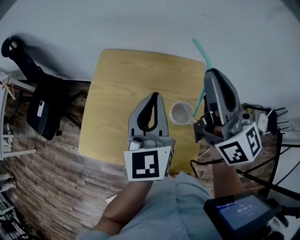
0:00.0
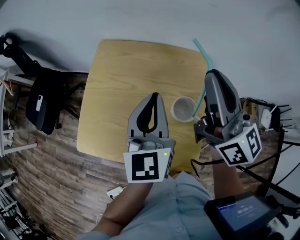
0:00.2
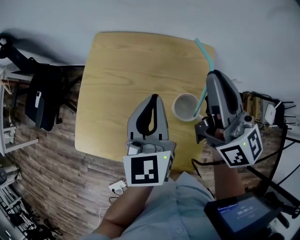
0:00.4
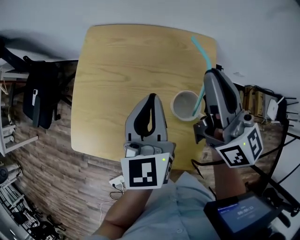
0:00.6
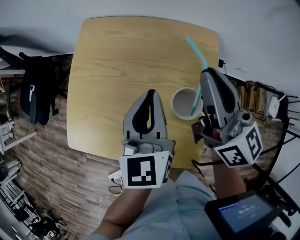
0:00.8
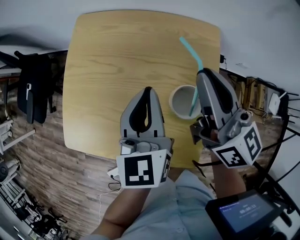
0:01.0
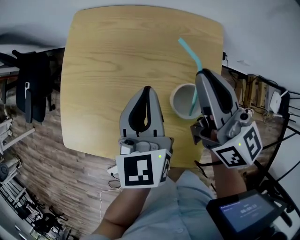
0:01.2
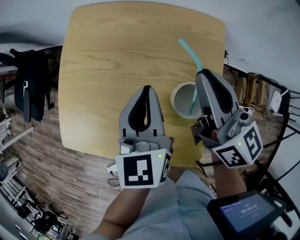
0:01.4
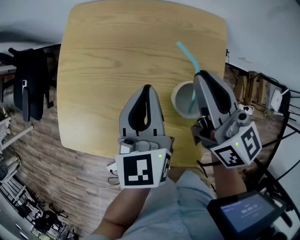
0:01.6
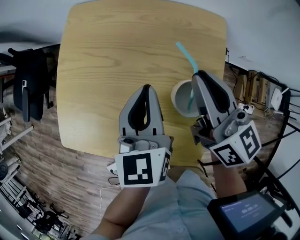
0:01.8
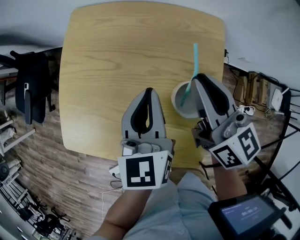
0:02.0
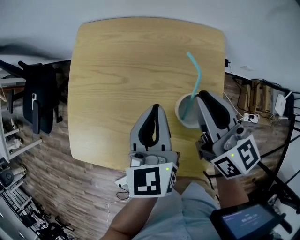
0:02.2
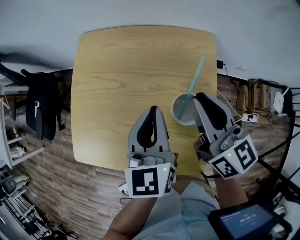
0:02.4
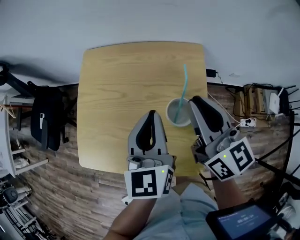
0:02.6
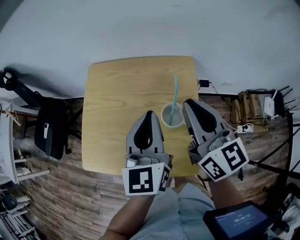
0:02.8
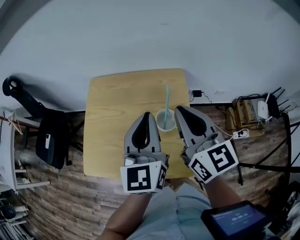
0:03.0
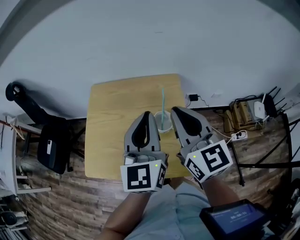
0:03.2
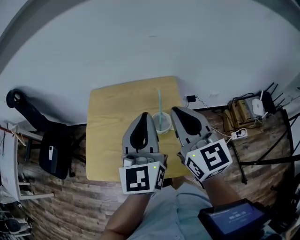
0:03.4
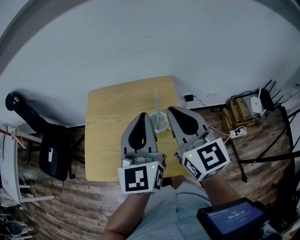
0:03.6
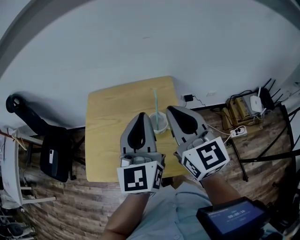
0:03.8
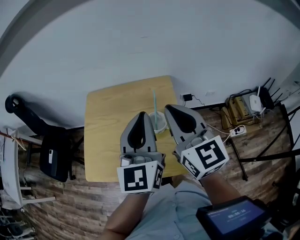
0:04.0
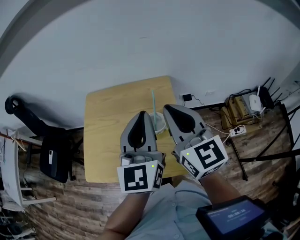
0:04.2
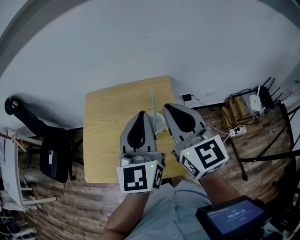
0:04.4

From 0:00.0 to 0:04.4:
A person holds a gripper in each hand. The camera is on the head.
From 0:00.0 to 0:01.4: Both grippers move downward, approximately 20 cm. The right gripper changes its angle by some 20 degrees.
From 0:01.4 to 0:03.0: The grippers both shift upward and backward by roughly 20 cm. The right gripper swivels some 20 degrees. Meanwhile the left gripper changes its angle by about 20 degrees.
From 0:03.0 to 0:04.4: The right gripper changes place by roughly 5 cm. Meanwhile the left gripper travels upward by some 5 cm.

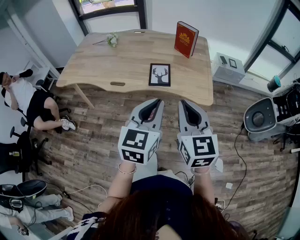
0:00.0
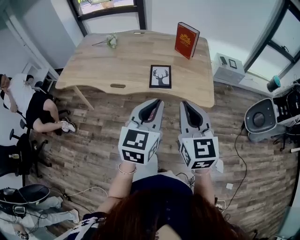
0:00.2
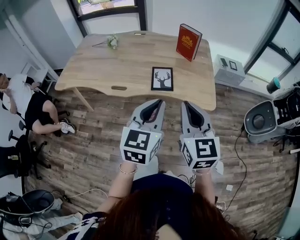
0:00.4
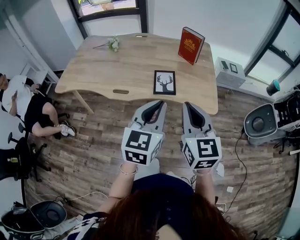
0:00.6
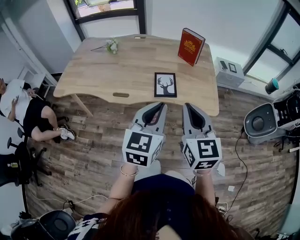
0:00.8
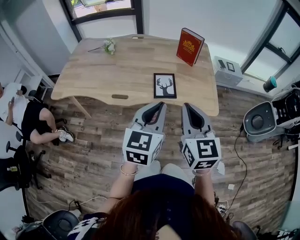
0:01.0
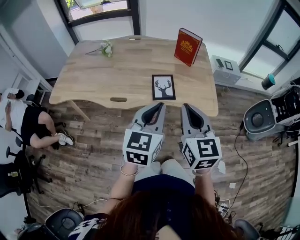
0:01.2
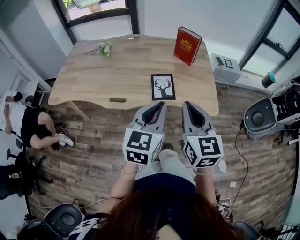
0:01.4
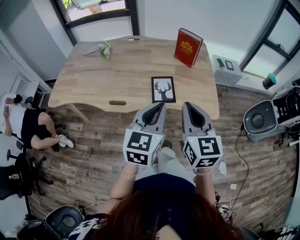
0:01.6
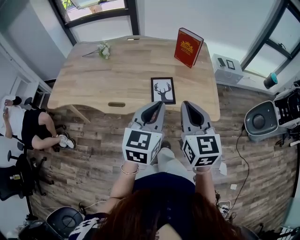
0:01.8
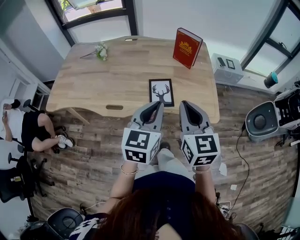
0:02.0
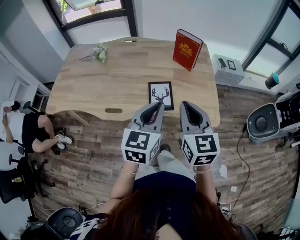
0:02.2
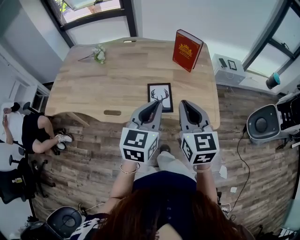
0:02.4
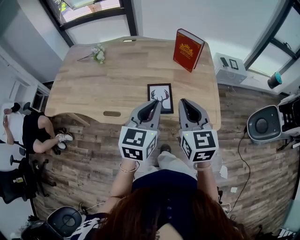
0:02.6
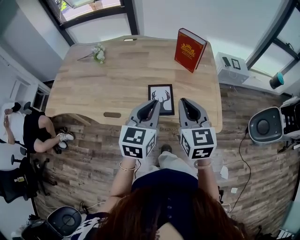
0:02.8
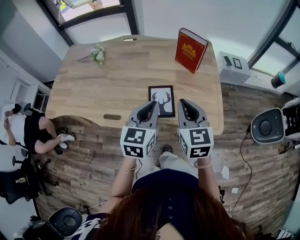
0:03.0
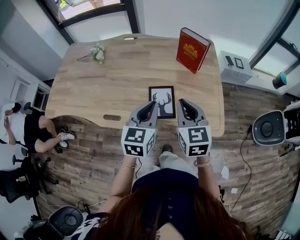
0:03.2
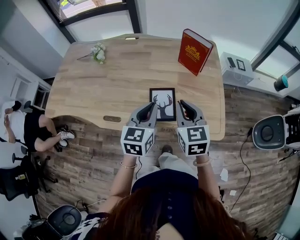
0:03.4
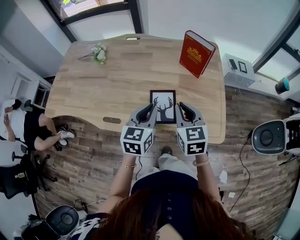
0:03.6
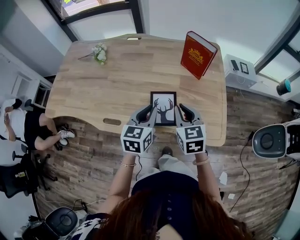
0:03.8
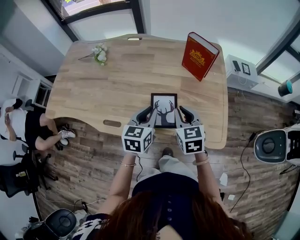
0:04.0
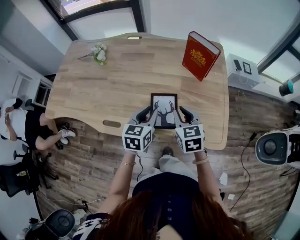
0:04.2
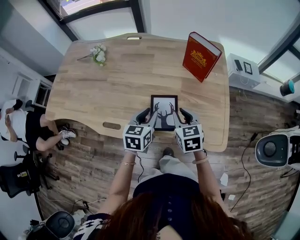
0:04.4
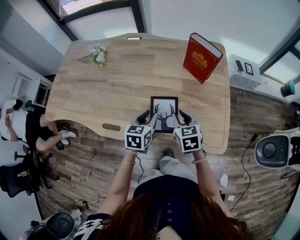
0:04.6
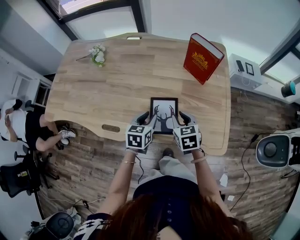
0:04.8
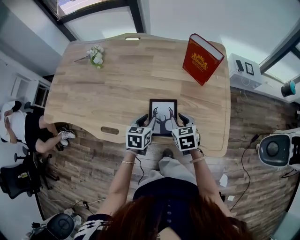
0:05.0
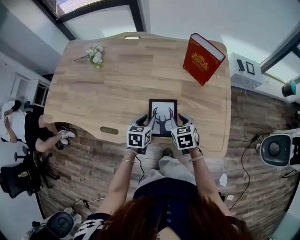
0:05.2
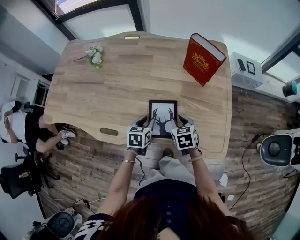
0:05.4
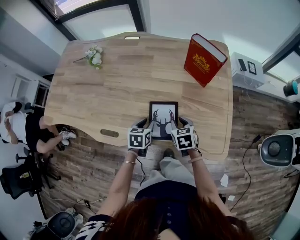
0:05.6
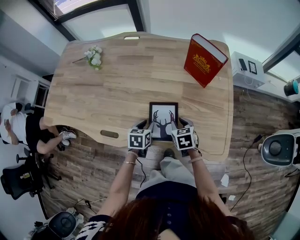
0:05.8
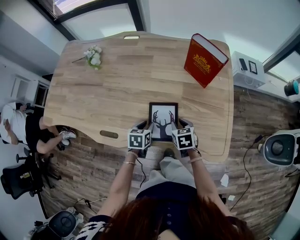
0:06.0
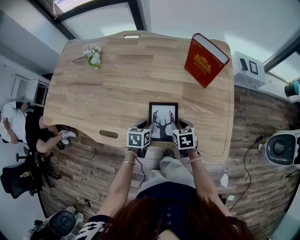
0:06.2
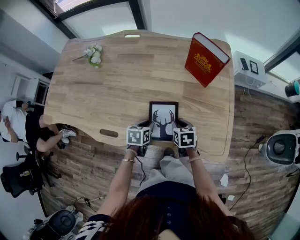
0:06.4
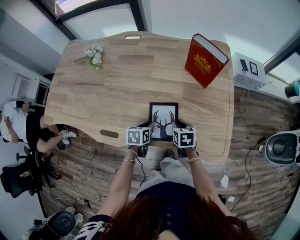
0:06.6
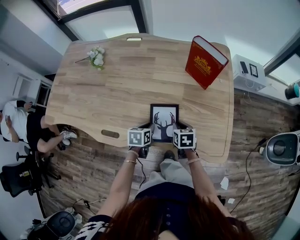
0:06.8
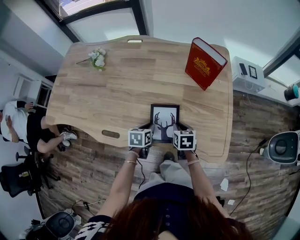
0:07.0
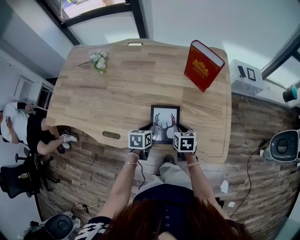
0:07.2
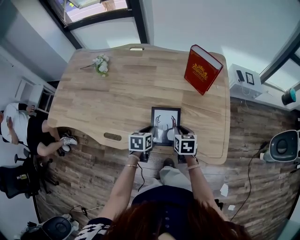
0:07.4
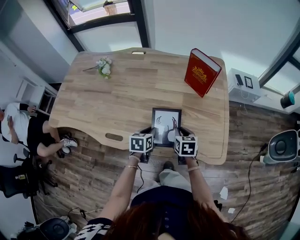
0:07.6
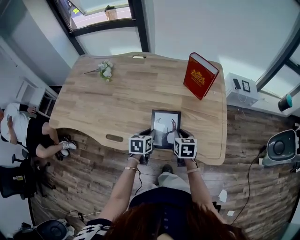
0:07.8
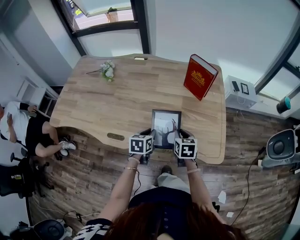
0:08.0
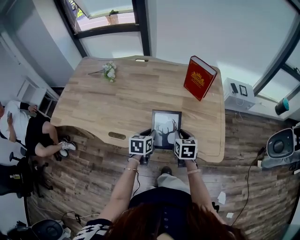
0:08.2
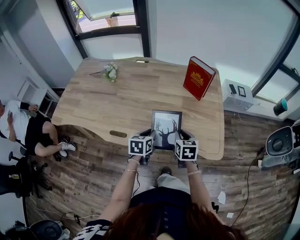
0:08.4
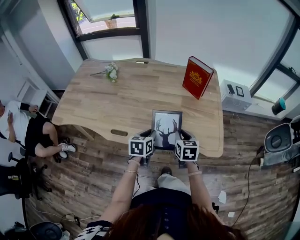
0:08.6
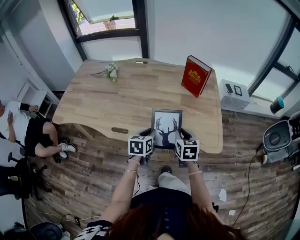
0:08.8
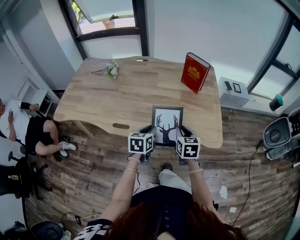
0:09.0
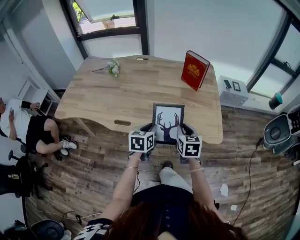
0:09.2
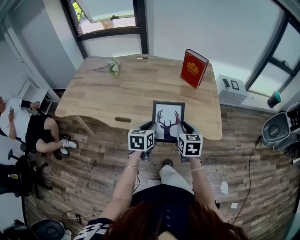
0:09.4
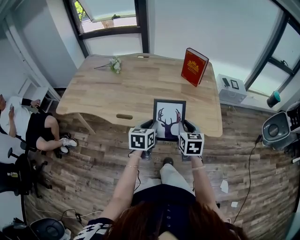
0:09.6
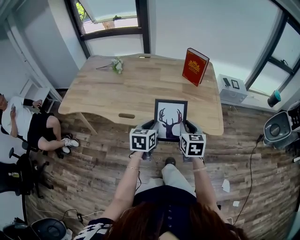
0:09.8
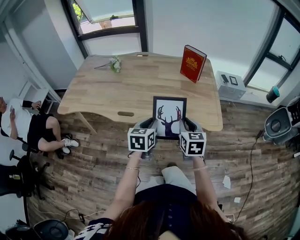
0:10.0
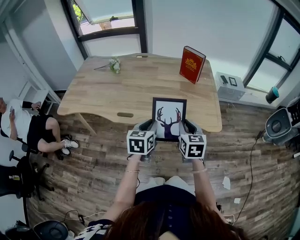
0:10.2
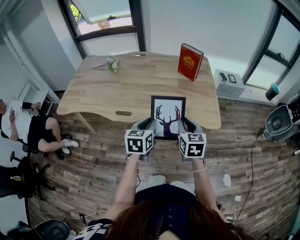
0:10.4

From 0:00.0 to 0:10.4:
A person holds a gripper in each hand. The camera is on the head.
From 0:00.0 to 0:01.4: The grippers both shift forward and to the left by about 10 cm.
From 0:01.4 to 0:03.0: Both grippers move forward and downward, approximately 20 cm.
From 0:03.0 to 0:04.4: Both grippers move downward and forward, approximately 15 cm. The right gripper swivels roughly 20 degrees.
From 0:04.4 to 0:06.0: Both grippers travel together downward, approximately 15 cm. The left gripper turns by approximately 20 degrees.
From 0:06.0 to 0:07.4: There are only small adjustments of the grippers.
From 0:07.4 to 0:09.0: The left gripper moves upward and backward, some 15 cm. The right gripper heads backward and upward, covering about 15 cm.
From 0:09.0 to 0:10.4: The two grippers go approximately 15 cm backward and upward.

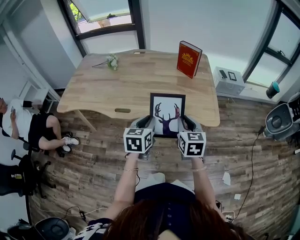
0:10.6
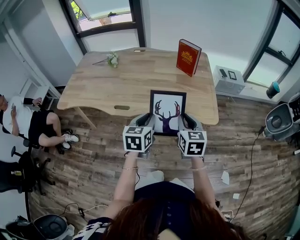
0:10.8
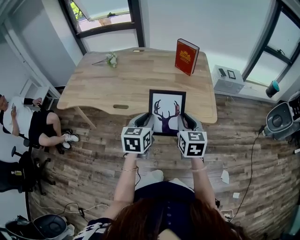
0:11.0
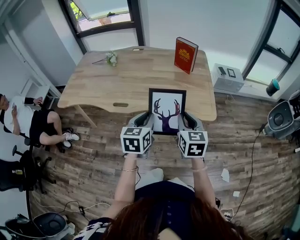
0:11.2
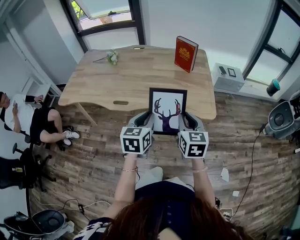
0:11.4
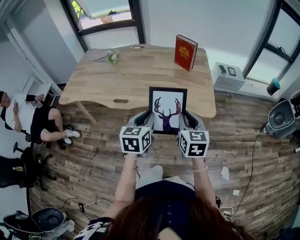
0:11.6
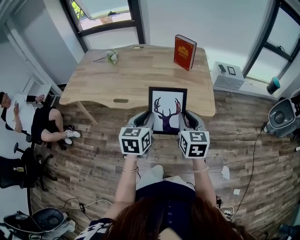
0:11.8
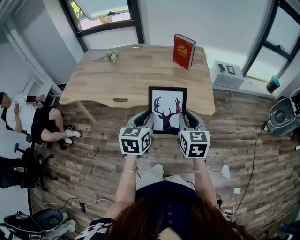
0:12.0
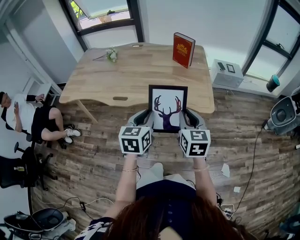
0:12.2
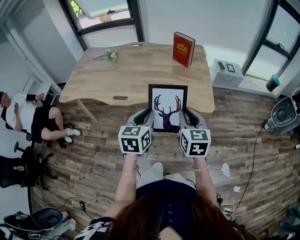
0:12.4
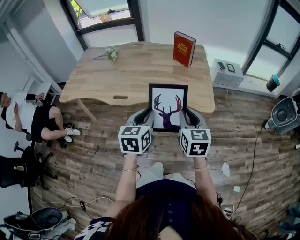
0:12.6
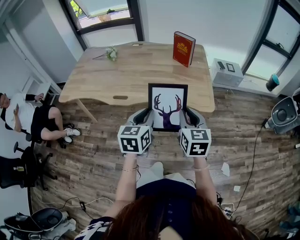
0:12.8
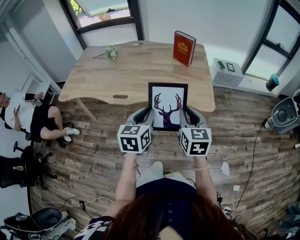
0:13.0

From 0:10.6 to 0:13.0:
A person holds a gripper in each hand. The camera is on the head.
From 0:10.6 to 0:11.8: Both grippers move backward, about 5 cm.
From 0:11.8 to 0:13.0: The grippers move only a little.

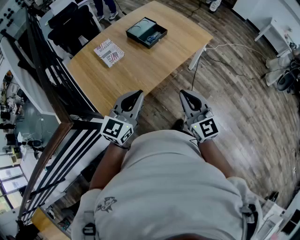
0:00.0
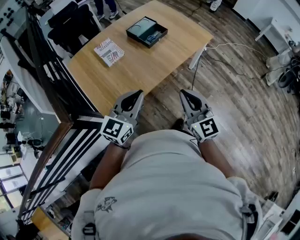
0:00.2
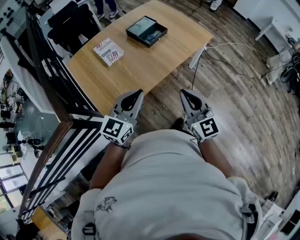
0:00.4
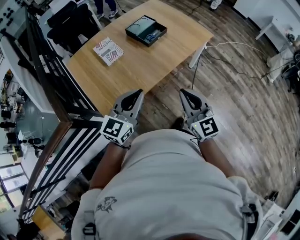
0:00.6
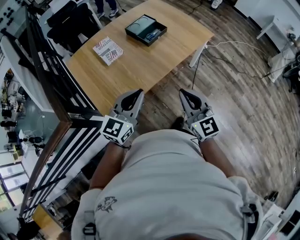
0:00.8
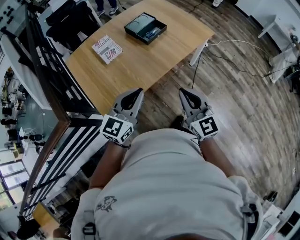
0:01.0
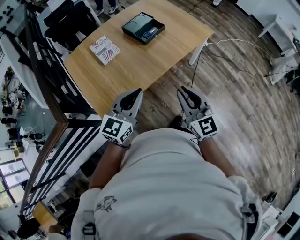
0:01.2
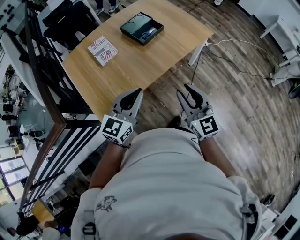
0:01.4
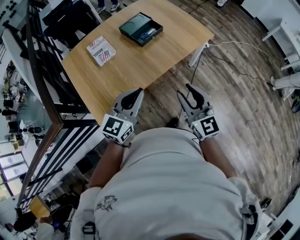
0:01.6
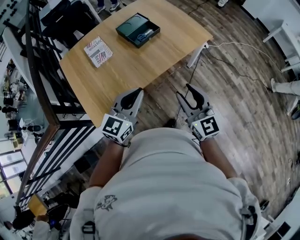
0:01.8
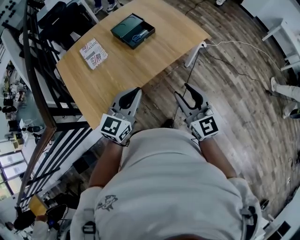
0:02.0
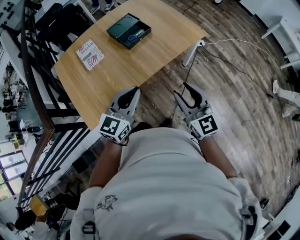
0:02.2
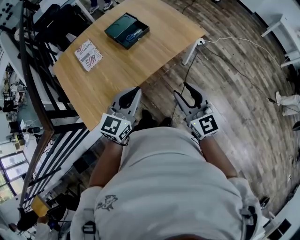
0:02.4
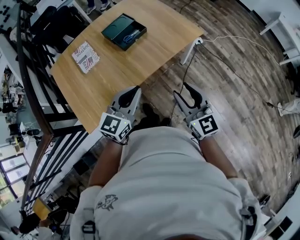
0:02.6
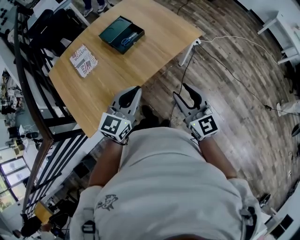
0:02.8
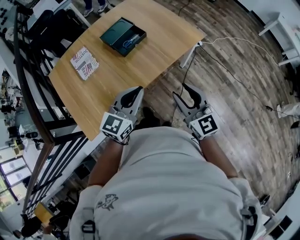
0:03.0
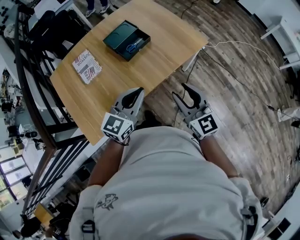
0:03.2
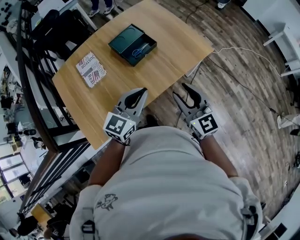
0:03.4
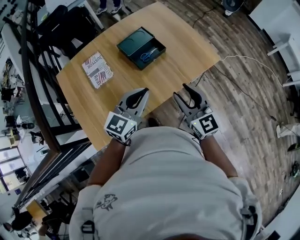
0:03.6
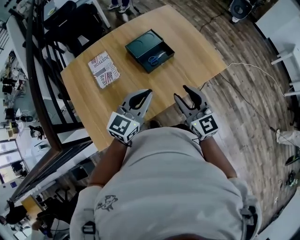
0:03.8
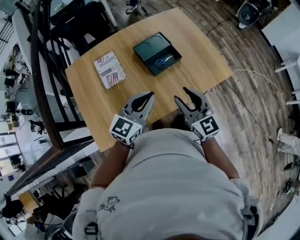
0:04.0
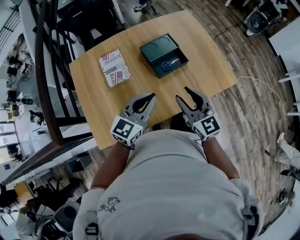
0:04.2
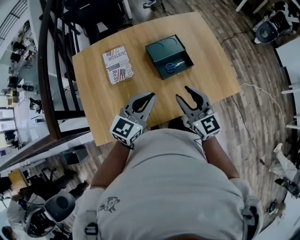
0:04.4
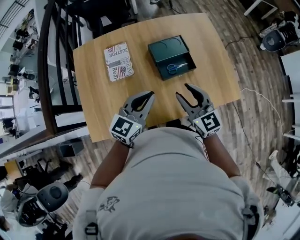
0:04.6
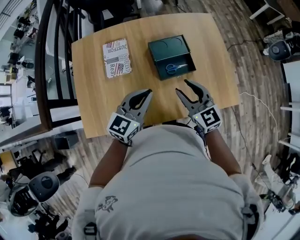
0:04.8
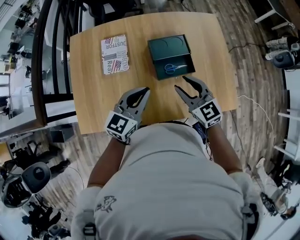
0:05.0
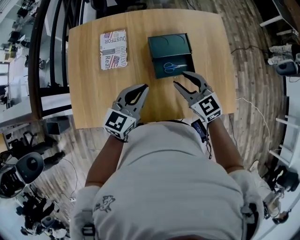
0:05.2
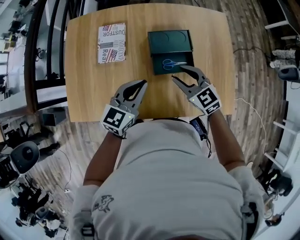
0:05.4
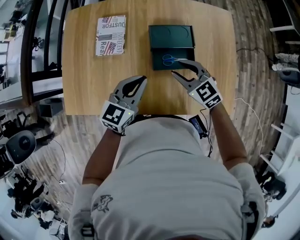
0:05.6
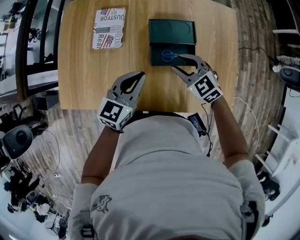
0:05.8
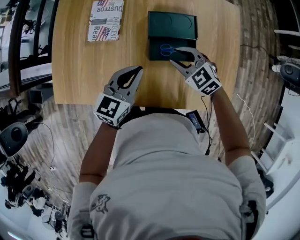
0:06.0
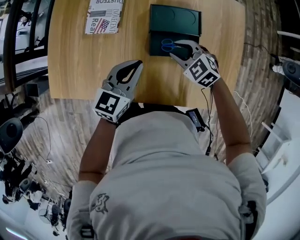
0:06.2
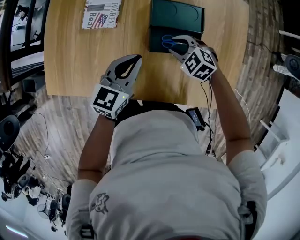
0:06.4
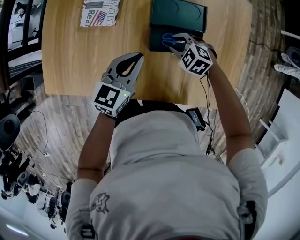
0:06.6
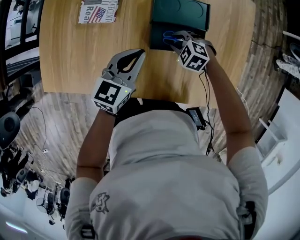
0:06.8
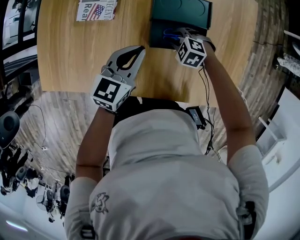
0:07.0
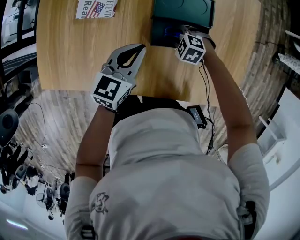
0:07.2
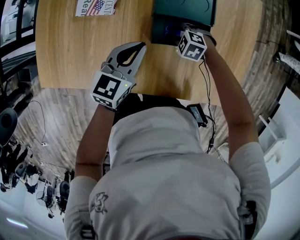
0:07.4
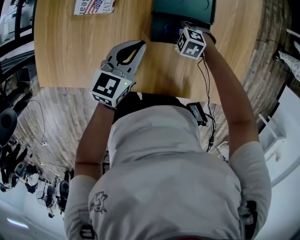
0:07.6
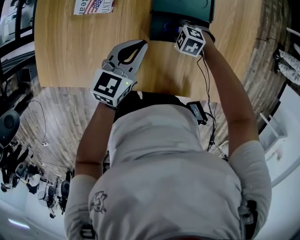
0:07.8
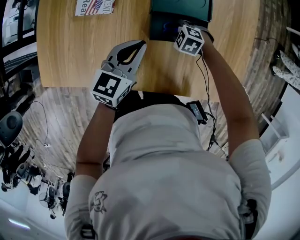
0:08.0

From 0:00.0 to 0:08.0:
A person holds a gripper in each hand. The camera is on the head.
From 0:00.0 to 0:01.6: Both grippers travel together to the right and forward, about 10 cm. The right gripper opens.
From 0:01.6 to 0:03.2: The left gripper heads forward and to the right, covering some 15 cm; the right gripper heads forward, covering roughly 15 cm.
From 0:03.2 to 0:04.8: The left gripper ends up approximately 20 cm from where it was, and turns by some 30 degrees, while the right gripper moves some 30 cm, and swivels approximately 30 degrees.
From 0:04.8 to 0:06.4: The right gripper goes approximately 25 cm downward, and tips its fingers downward by approximately 40 degrees, while the left gripper heads downward, covering some 15 cm, and swivels roughly 20 degrees.
From 0:06.4 to 0:08.0: The right gripper goes approximately 10 cm downward.
